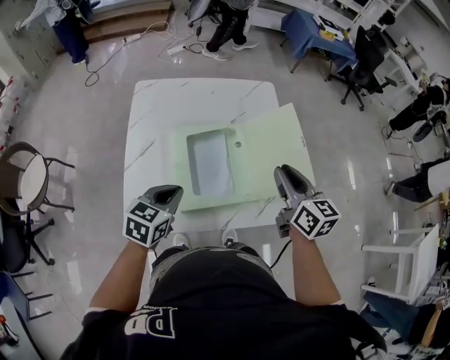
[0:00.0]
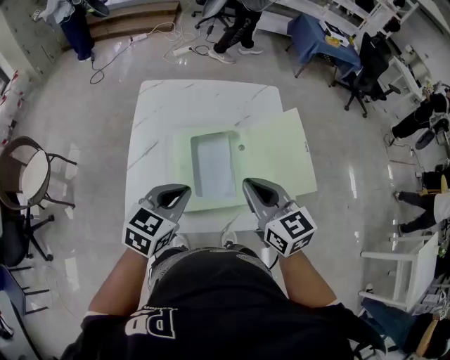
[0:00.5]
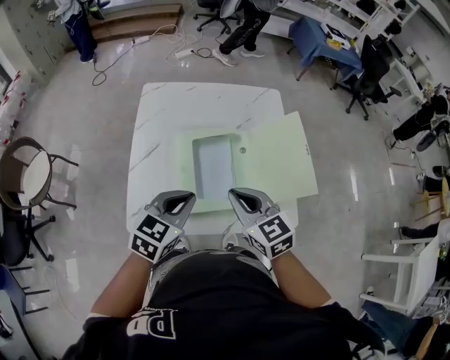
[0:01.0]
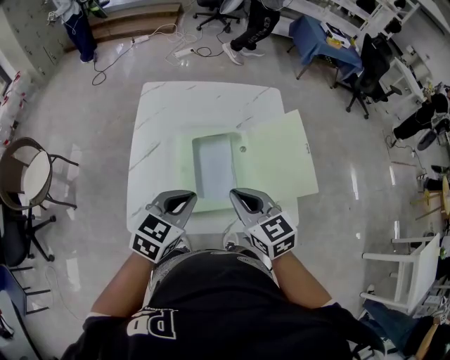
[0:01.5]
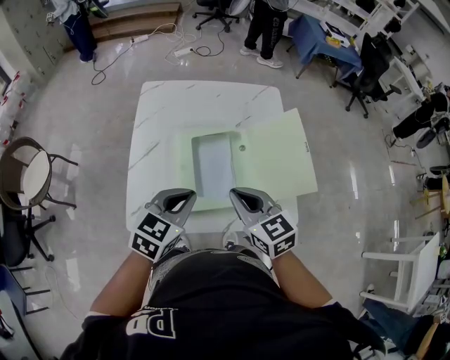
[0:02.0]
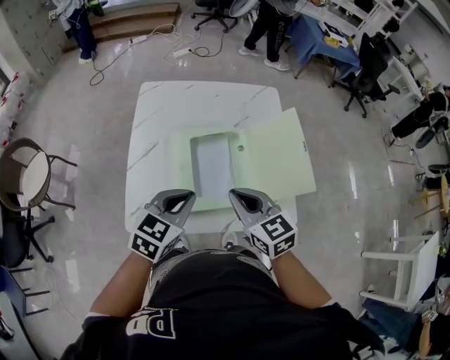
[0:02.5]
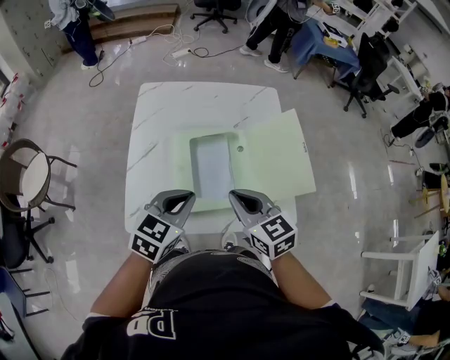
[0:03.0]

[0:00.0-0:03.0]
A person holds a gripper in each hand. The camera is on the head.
0.0 to 1.5 s: The left gripper moves upward, roughly 5 cm; the right gripper moves to the left and backward, some 15 cm, swivels approximately 30 degrees, and closes.
1.5 to 3.0 s: The two grippers keep their place.

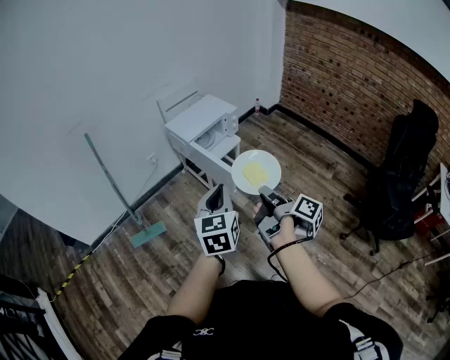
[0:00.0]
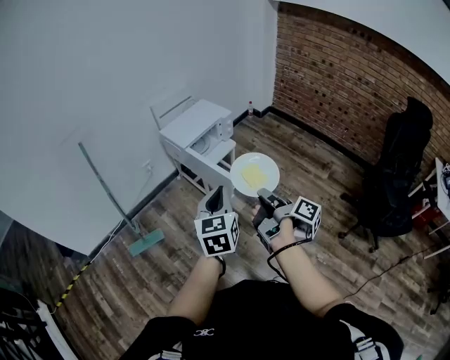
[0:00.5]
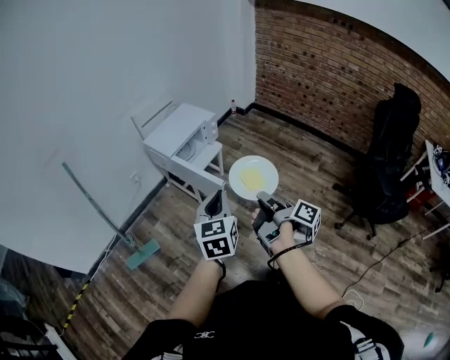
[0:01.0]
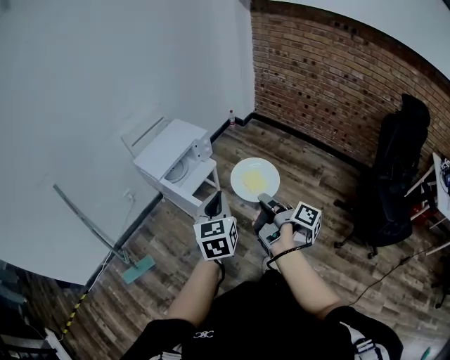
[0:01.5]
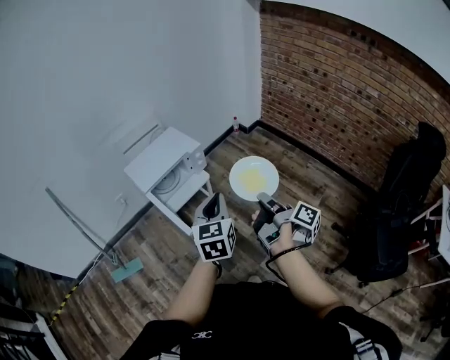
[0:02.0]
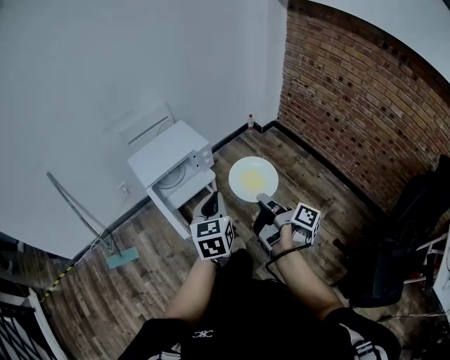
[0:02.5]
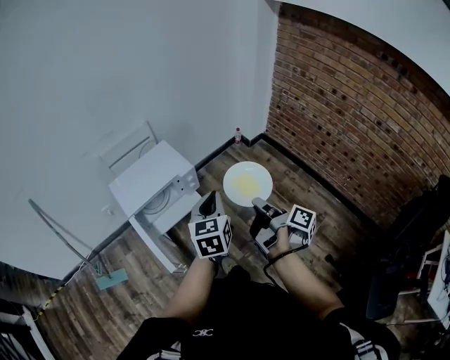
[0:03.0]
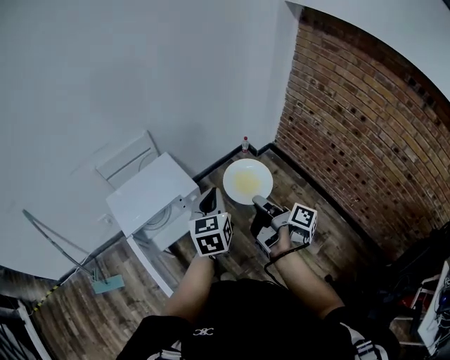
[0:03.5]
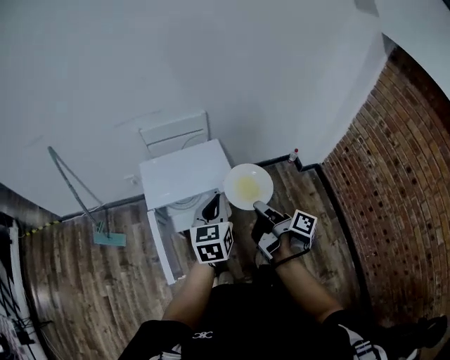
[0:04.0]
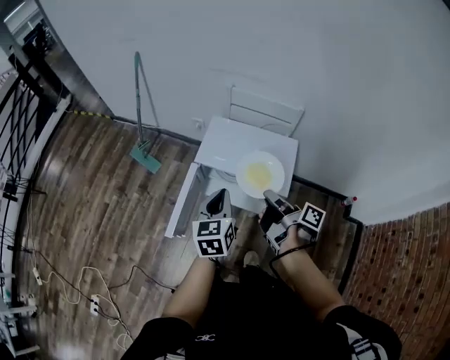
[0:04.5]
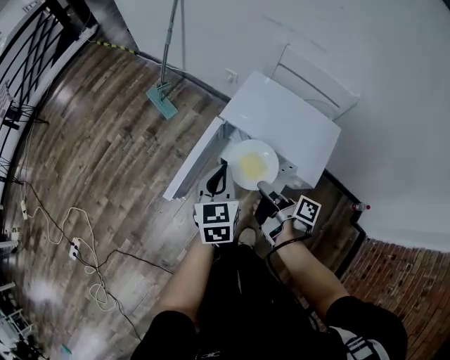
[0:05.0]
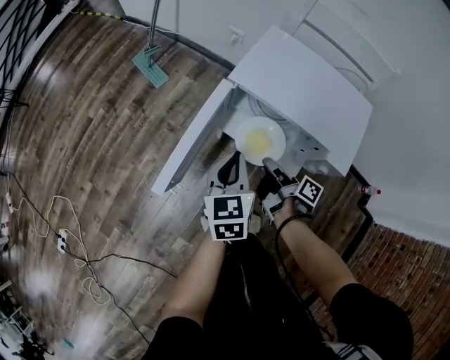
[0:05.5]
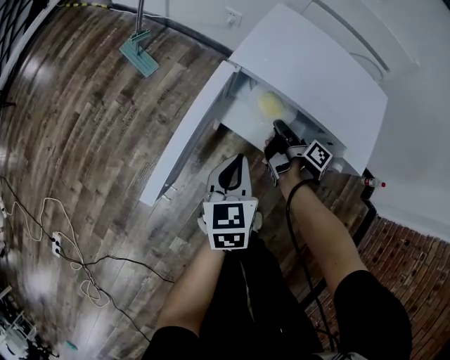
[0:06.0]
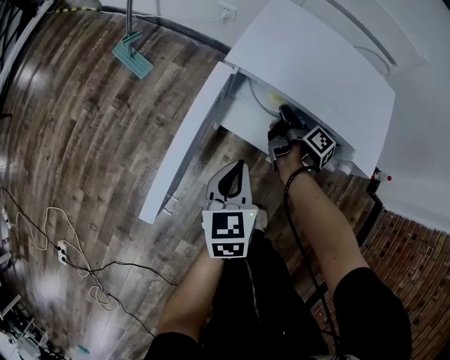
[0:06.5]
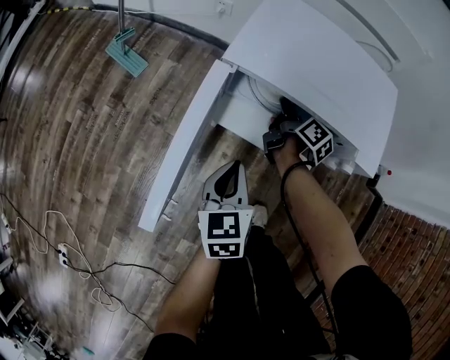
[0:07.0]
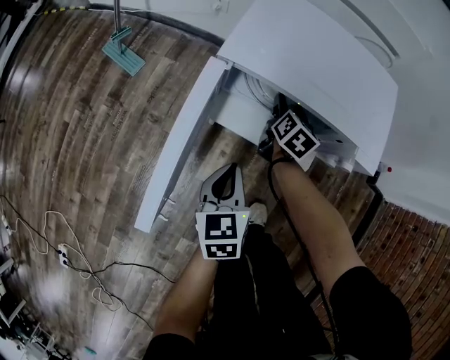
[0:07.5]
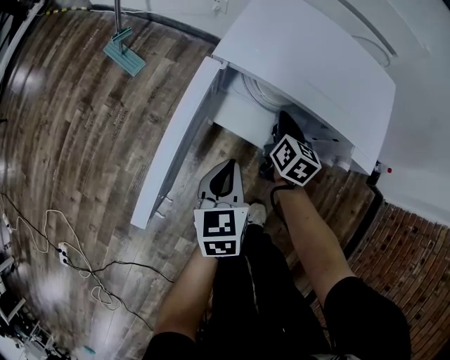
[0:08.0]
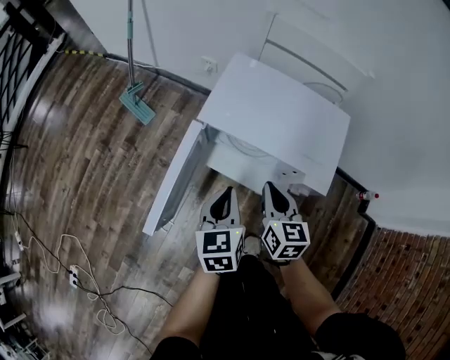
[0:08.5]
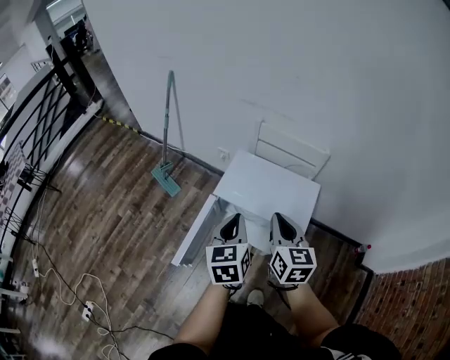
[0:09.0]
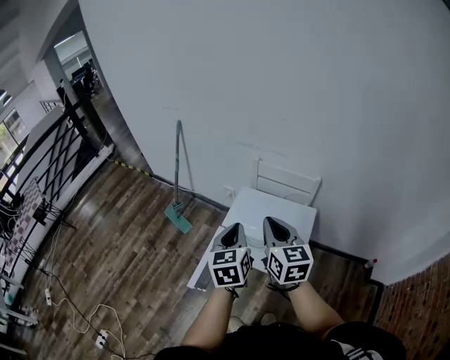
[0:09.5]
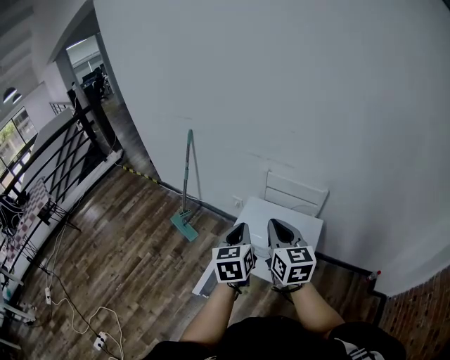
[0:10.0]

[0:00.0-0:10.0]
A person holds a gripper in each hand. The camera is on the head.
0.0 to 2.0 s: The left gripper ends up roughly 35 cm from where it was.
2.0 to 4.0 s: The left gripper ends up approximately 40 cm from where it was, and rotates roughly 30 degrees.
4.0 to 6.0 s: The left gripper heads downward, covering about 35 cm, and swivels about 40 degrees.
8.0 to 10.0 s: The left gripper moves upward, roughly 50 cm.

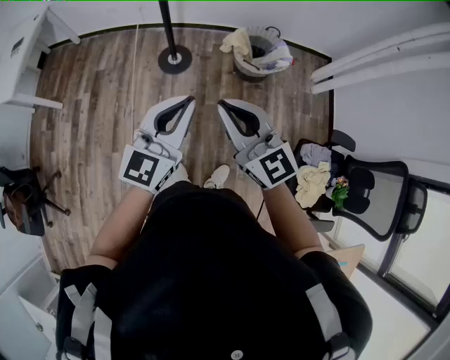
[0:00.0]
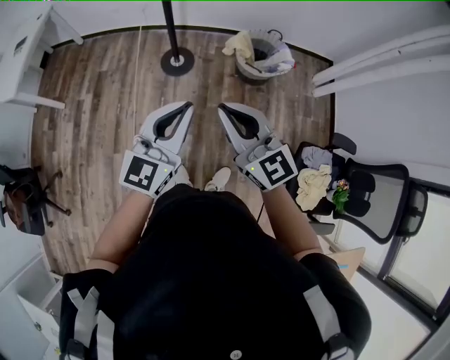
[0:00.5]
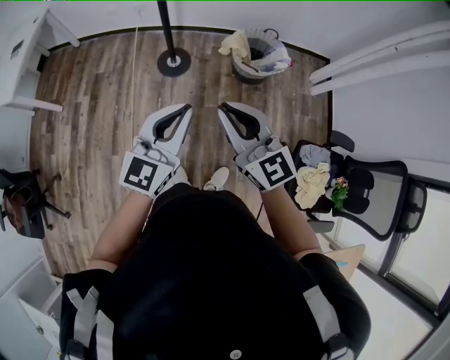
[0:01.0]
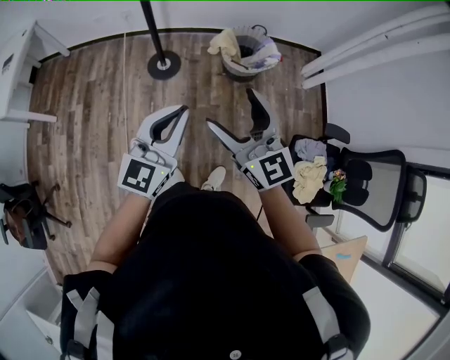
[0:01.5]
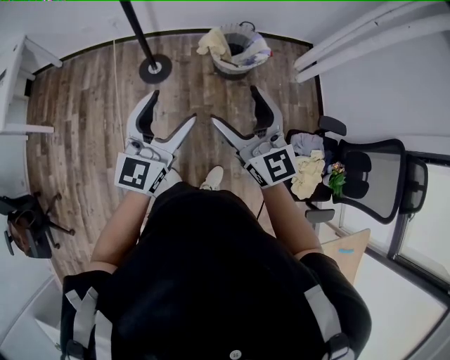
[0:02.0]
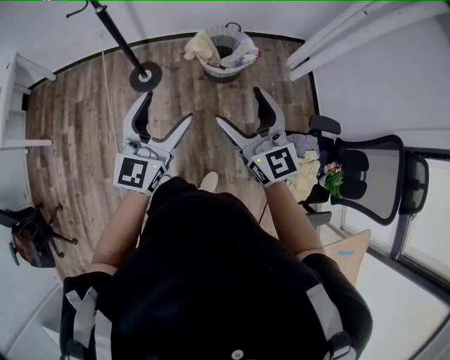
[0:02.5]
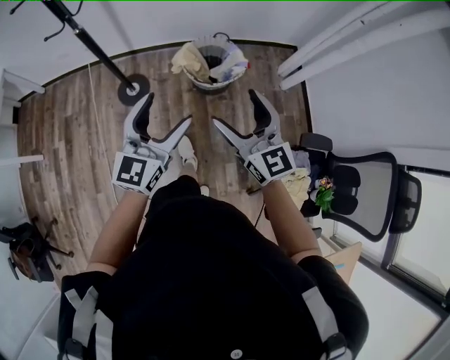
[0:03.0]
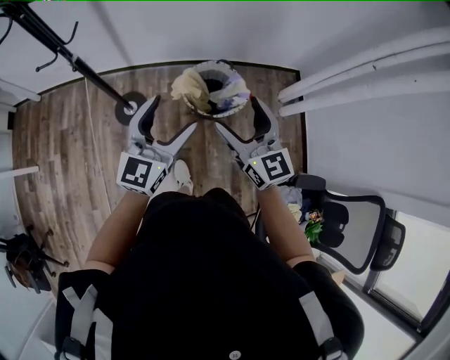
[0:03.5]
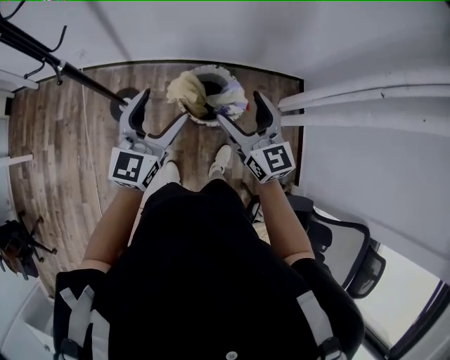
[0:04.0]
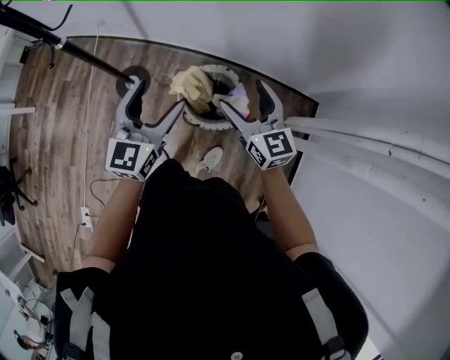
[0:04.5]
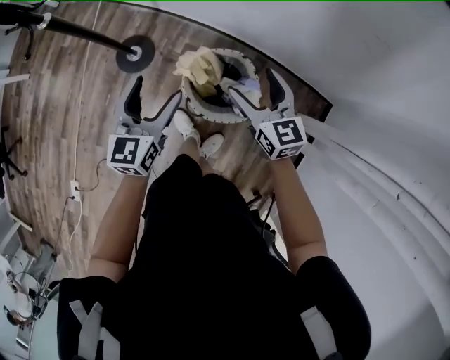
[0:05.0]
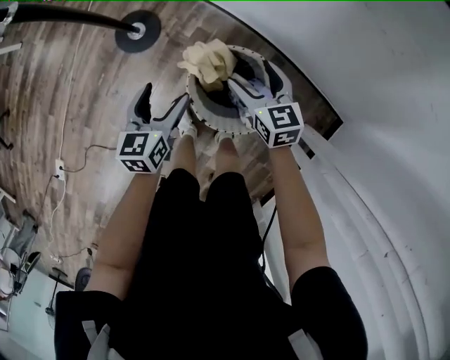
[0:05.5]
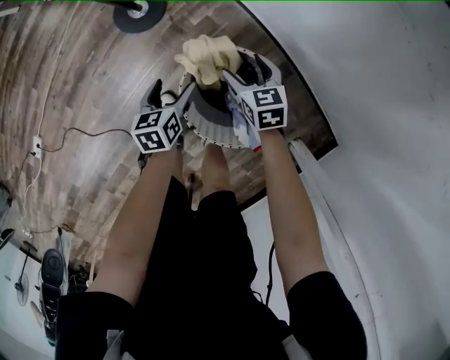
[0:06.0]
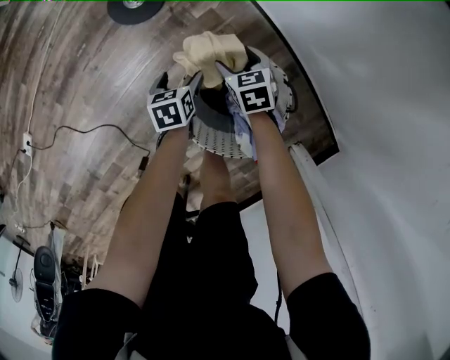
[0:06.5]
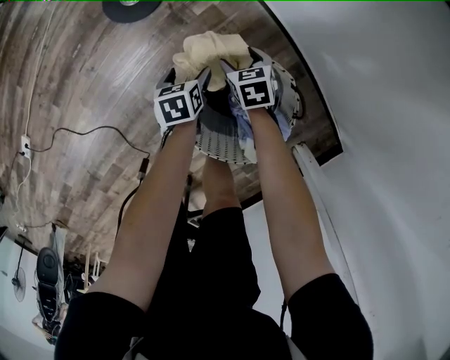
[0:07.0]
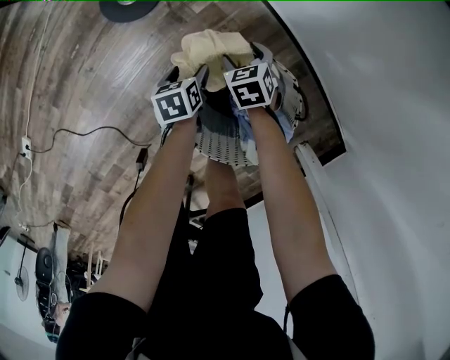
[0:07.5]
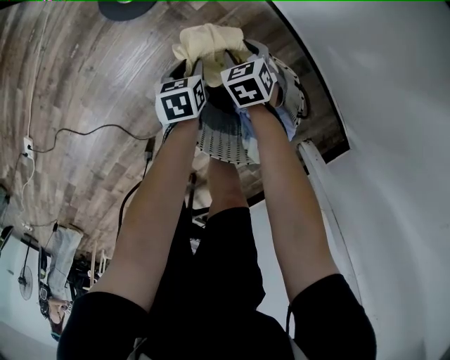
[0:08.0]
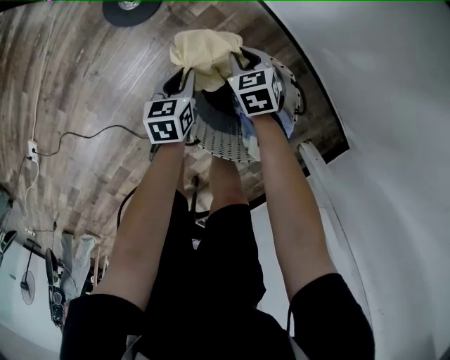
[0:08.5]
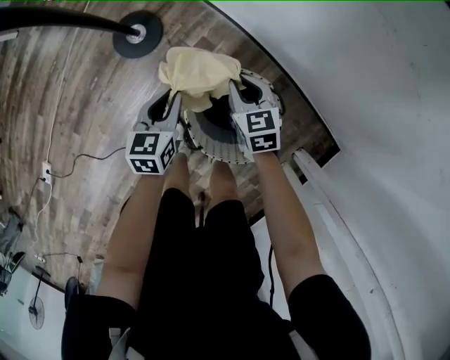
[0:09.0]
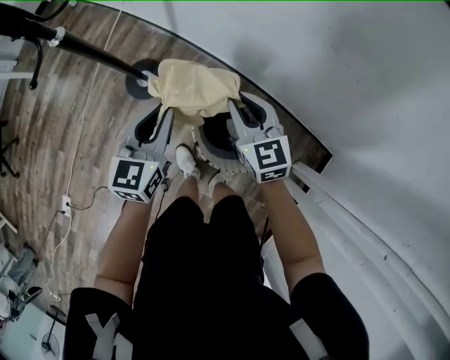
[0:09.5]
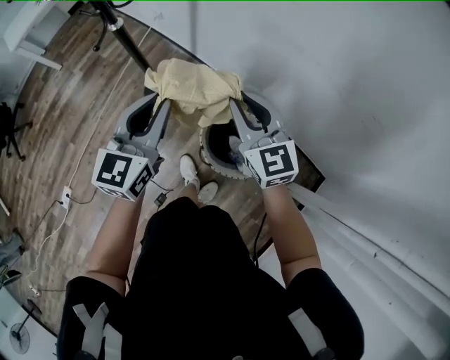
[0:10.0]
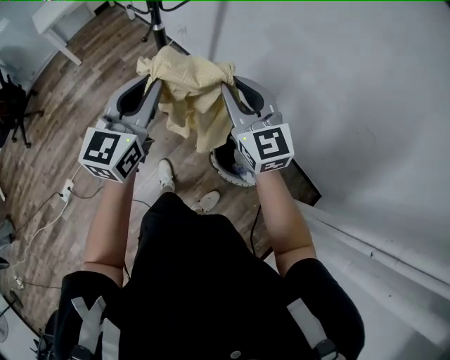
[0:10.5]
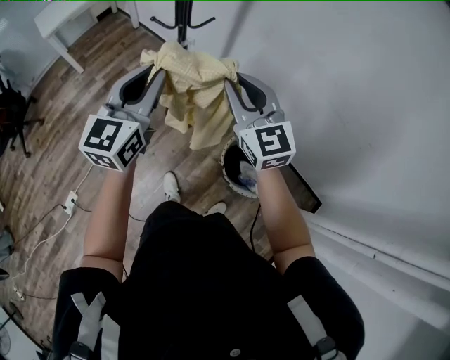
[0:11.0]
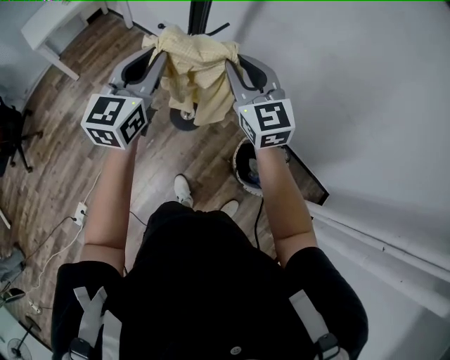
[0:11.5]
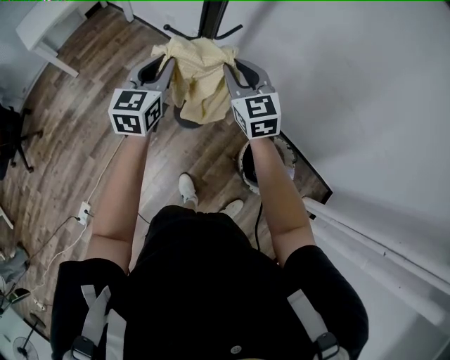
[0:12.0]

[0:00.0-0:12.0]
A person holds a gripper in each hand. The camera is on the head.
0.0 to 2.0 s: The right gripper travels to the right by roughly 10 cm, and opens, while the left gripper shifts approximately 5 cm to the right, and opens its fingers.
2.0 to 4.0 s: Both grippers are carried forward and to the right, roughly 50 cm.
4.0 to 6.0 s: Both grippers travel together downward, roughly 60 cm. The right gripper tips its fingers downward by about 40 degrees. Meanwhile the left gripper angles its fingers downward, by about 50 degrees.
6.0 to 8.0 s: Both grippers travel together downward, about 20 cm. The right gripper swivels approximately 20 degrees, and closes its fingers. The left gripper closes up.
8.0 to 10.0 s: The grippers both shift upward by about 70 cm. The right gripper tilts its fingers approximately 50 degrees upward; the left gripper points its fingers some 50 degrees further upward.
10.0 to 12.0 s: The two grippers go approximately 40 cm to the left and forward.

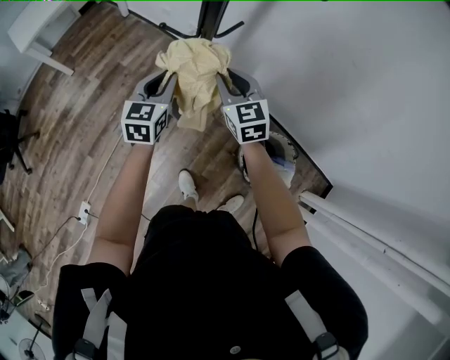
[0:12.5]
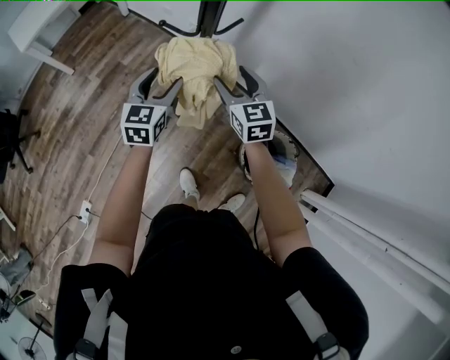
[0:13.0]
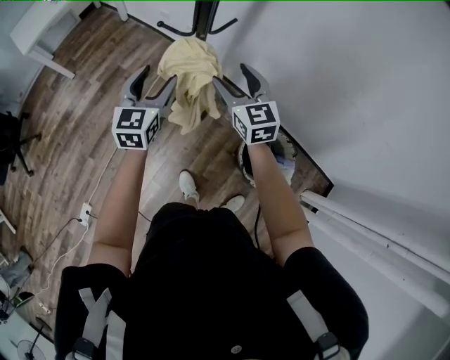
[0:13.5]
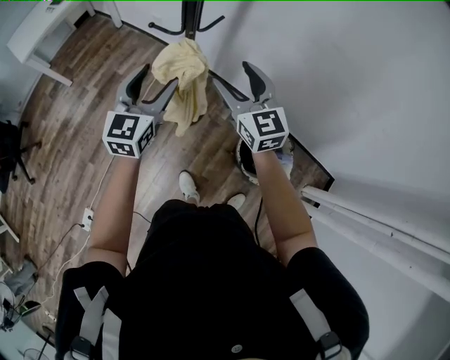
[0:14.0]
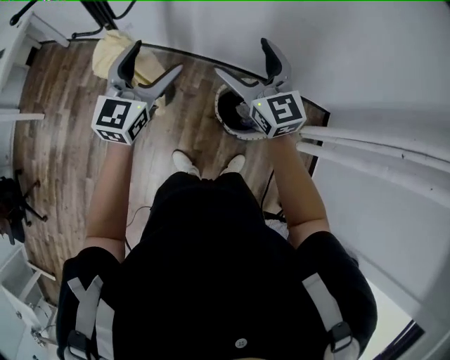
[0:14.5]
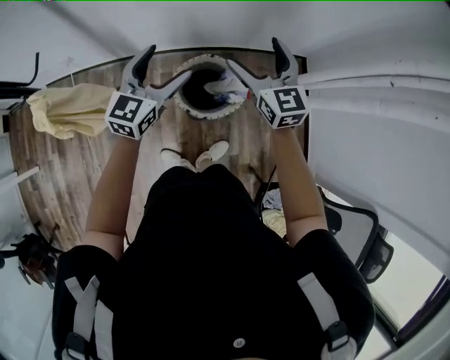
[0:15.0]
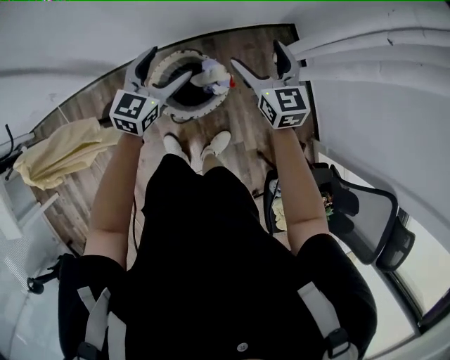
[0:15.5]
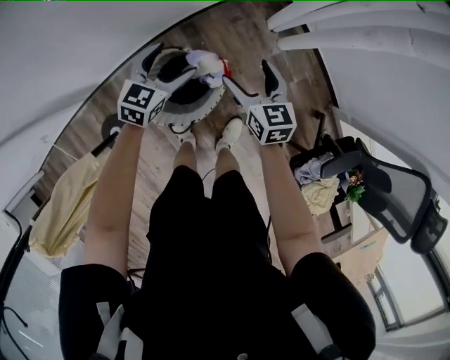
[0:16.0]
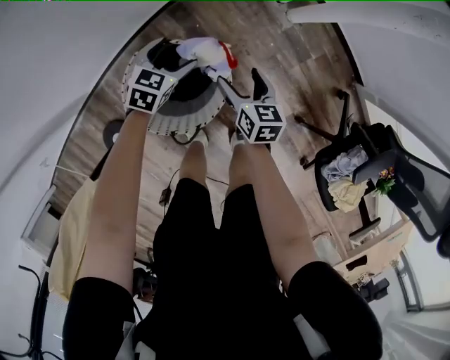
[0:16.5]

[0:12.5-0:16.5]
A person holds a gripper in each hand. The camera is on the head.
12.5 to 14.5 s: The left gripper heads to the right, upward and backward, covering approximately 25 cm, rotates roughly 30 degrees, and opens up. The right gripper moves to the right, backward and upward, approximately 30 cm, rotates about 20 degrees, and opens.
14.5 to 16.5 s: The pair of grippers is taken approximately 60 cm. The right gripper is displaced downward by about 60 cm, and tilts its fingers some 30 degrees downward, while the left gripper tilts its fingers about 40 degrees downward.
